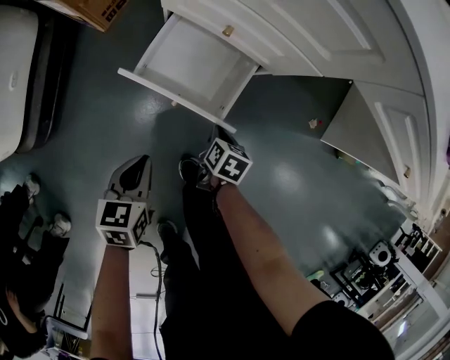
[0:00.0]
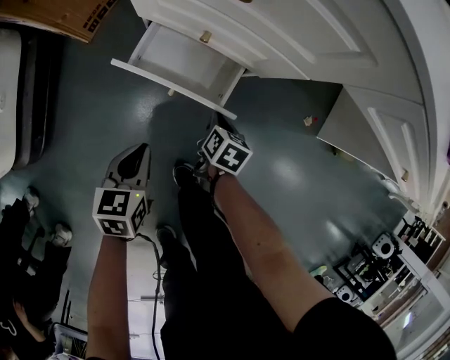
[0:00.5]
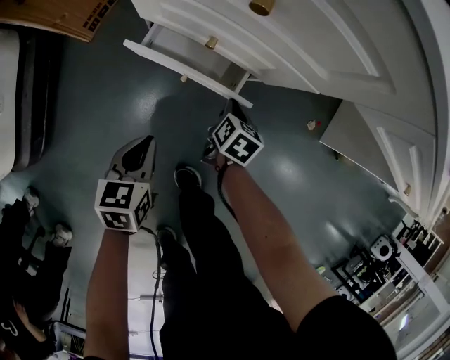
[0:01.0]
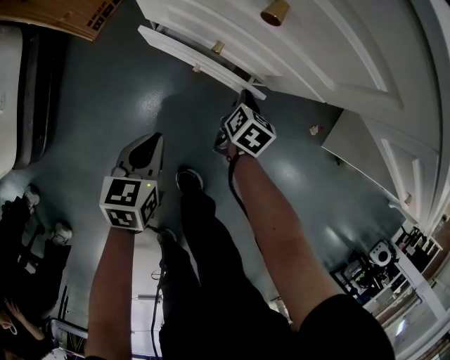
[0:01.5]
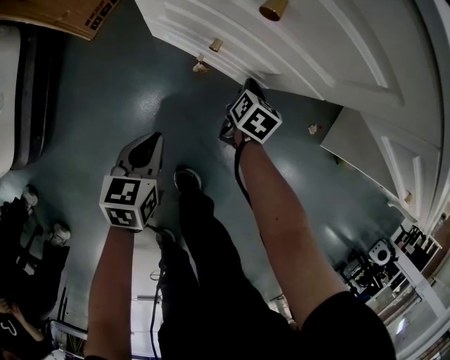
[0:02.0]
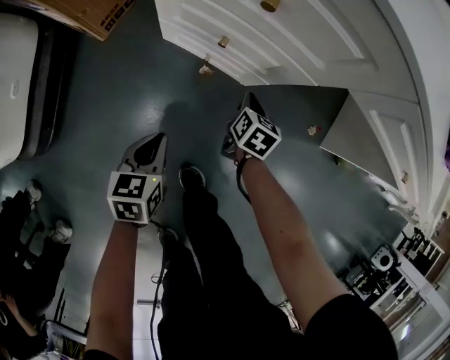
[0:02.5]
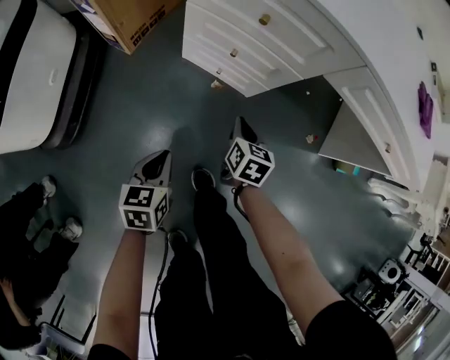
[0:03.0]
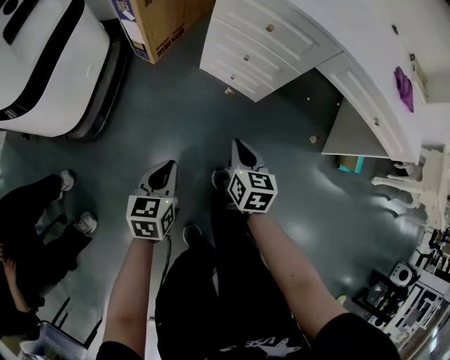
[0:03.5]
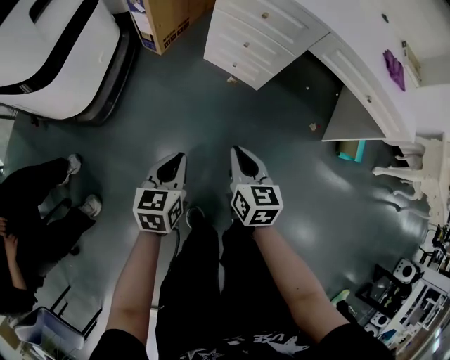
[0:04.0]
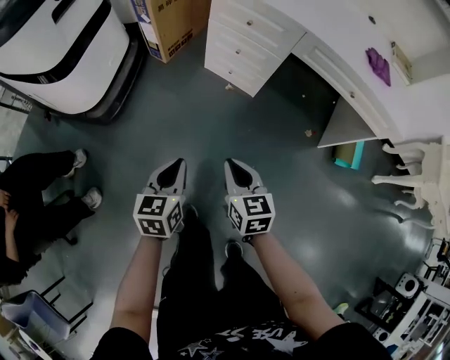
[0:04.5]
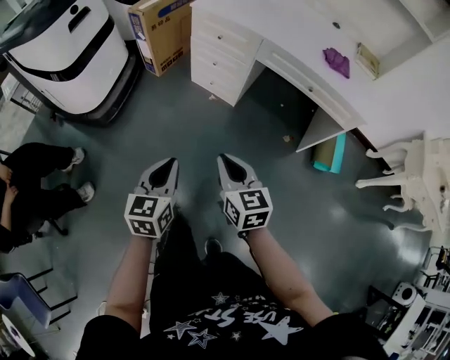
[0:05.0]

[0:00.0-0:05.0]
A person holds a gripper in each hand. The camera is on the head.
0:00.0 to 0:02.5: The right gripper goes about 15 cm forward. The left gripper is displaced forward by about 10 cm.
0:02.5 to 0:05.0: Both grippers are carried some 50 cm. The left gripper swivels roughly 30 degrees. The right gripper changes its angle by some 50 degrees.

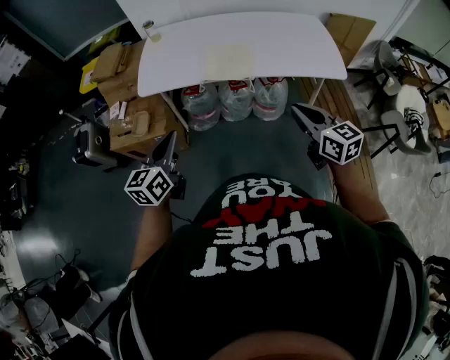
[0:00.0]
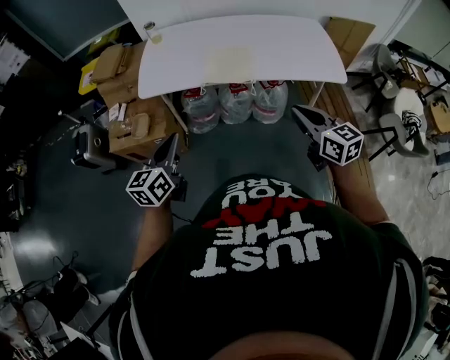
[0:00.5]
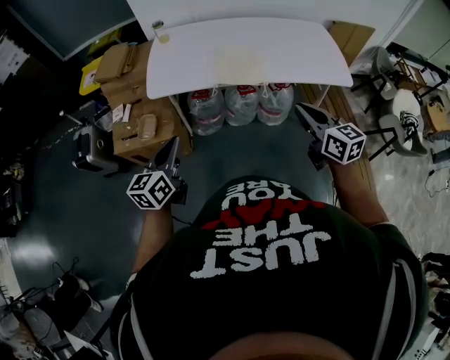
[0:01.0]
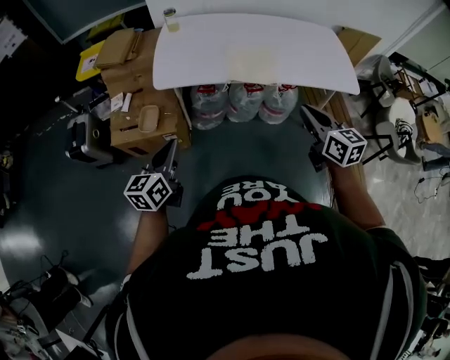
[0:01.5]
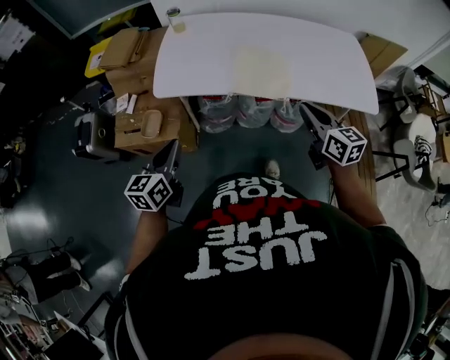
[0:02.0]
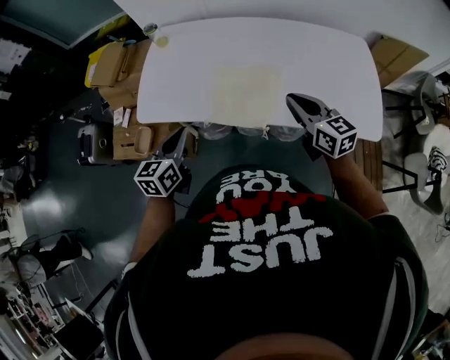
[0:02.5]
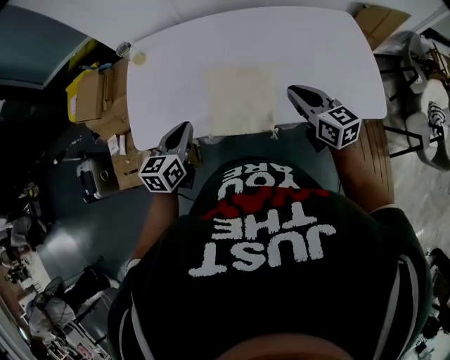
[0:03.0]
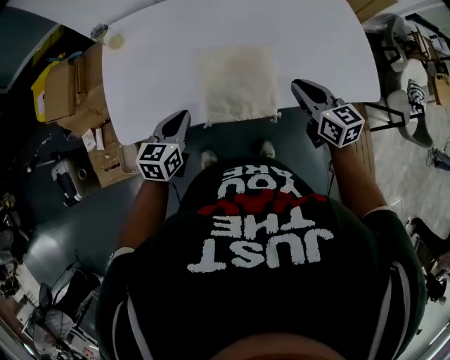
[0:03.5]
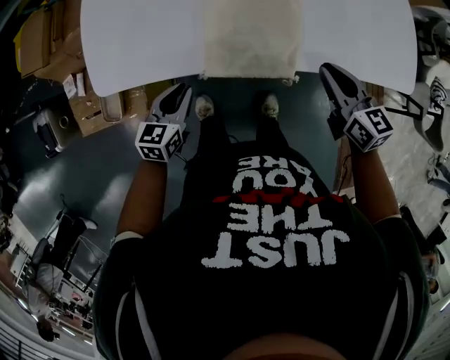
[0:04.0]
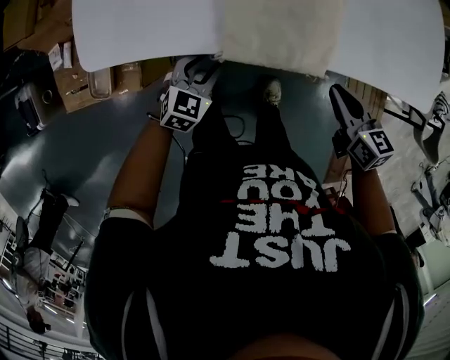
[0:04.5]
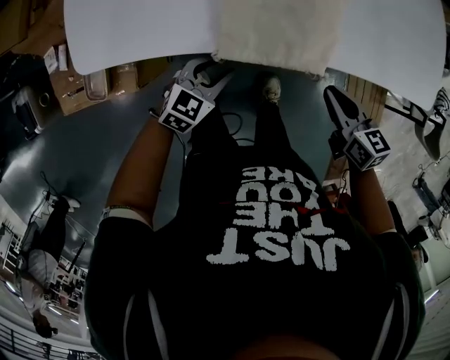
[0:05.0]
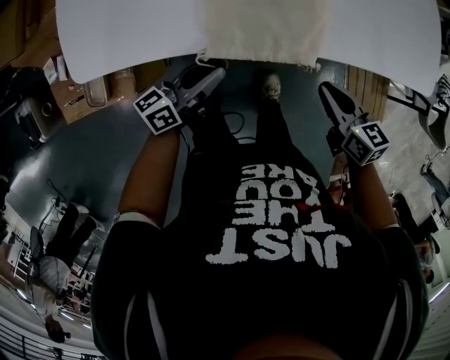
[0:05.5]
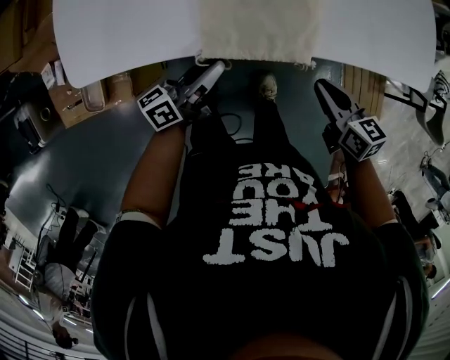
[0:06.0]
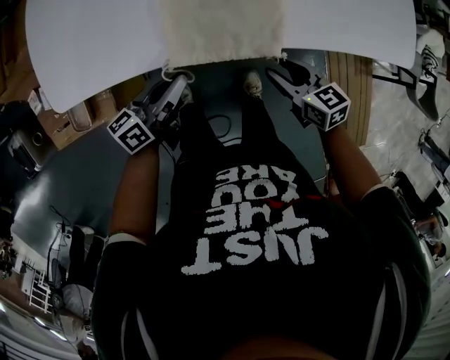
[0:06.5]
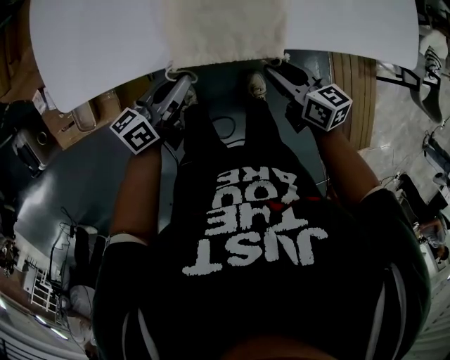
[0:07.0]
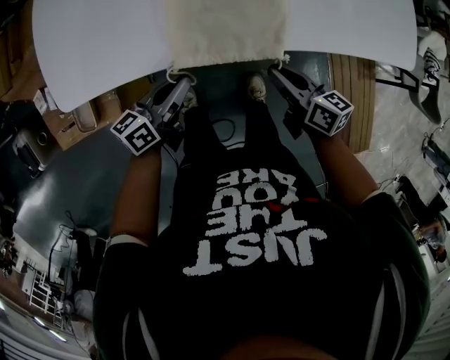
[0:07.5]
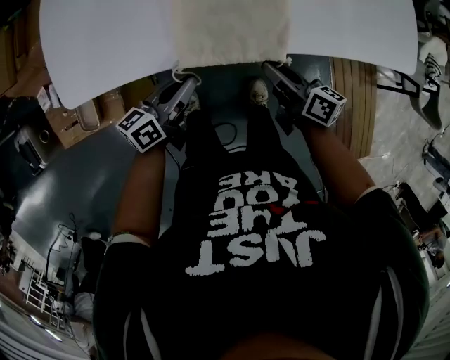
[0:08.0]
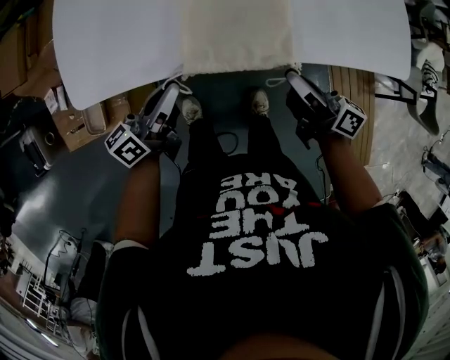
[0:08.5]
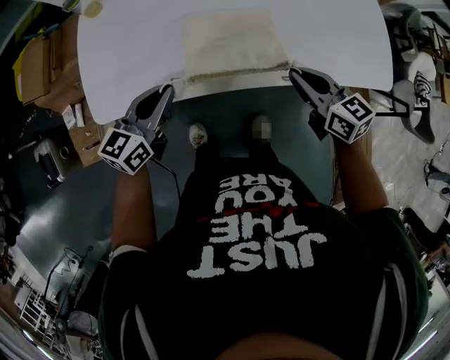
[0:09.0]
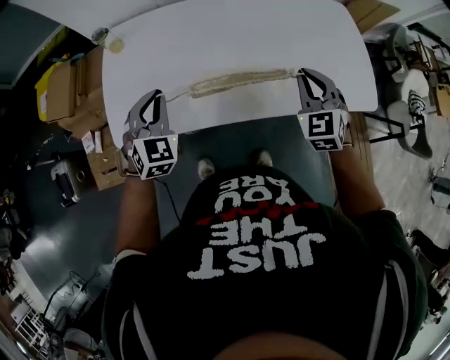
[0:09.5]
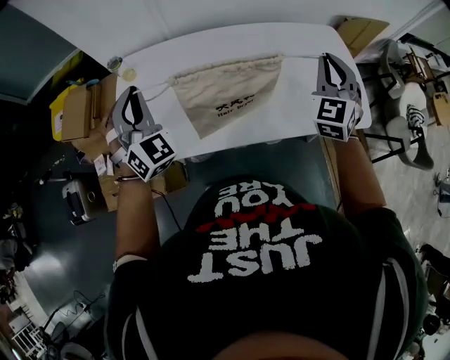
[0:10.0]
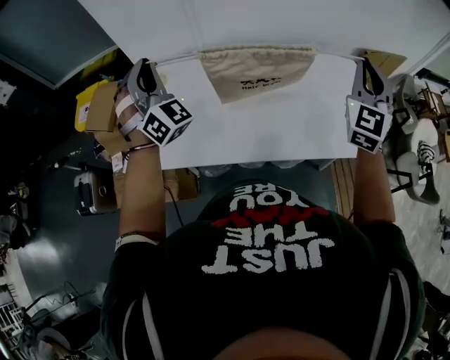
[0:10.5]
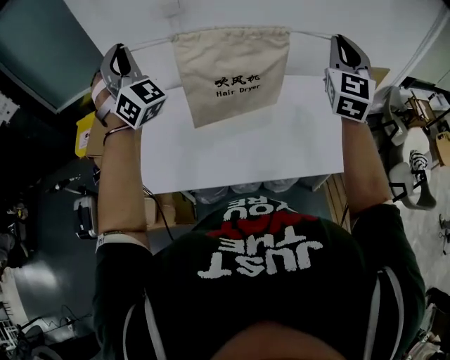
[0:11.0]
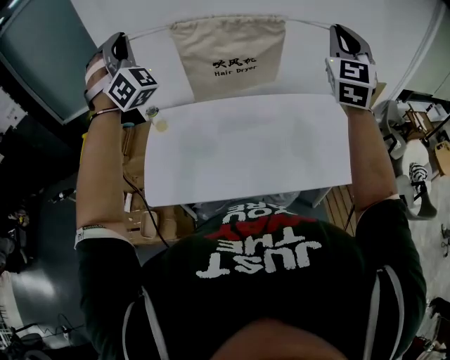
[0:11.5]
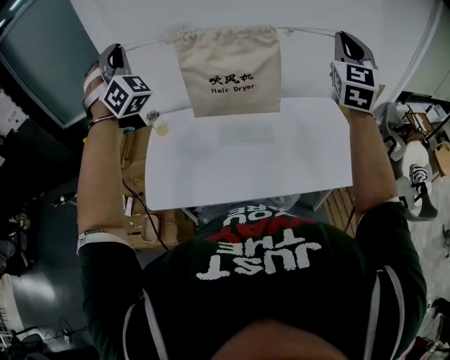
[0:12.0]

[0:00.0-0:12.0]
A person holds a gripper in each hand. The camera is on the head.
0:00.0 to 0:02.0: The right gripper shifts about 20 cm forward. The left gripper heads forward, to the left and downward, covering approximately 15 cm.
0:02.0 to 0:04.0: The left gripper is displaced forward, downward and to the right by some 35 cm, and changes its angle by approximately 30 degrees, while the right gripper goes some 25 cm forward and downward.
0:04.0 to 0:06.0: The left gripper travels to the right by roughly 10 cm, moves approximately 10 cm downward and comes back, angles its fingers upward, by some 40 degrees, and opens and closes again; the right gripper heads downward and backward, covering approximately 15 cm.
0:06.0 to 0:08.0: The right gripper goes approximately 5 cm to the left, rotates some 30 degrees, and opens, then closes once more.
0:08.0 to 0:10.0: The right gripper heads upward, covering approximately 40 cm, and rolls counterclockwise, seen from behind, by some 80 degrees. Meanwhile the left gripper goes some 40 cm upward and forward, and twists approximately 90 degrees clockwise, seen from behind.
0:10.0 to 0:12.0: Both grippers move upward, some 30 cm. The left gripper rotates roughly 30 degrees, while the right gripper swivels about 30 degrees.

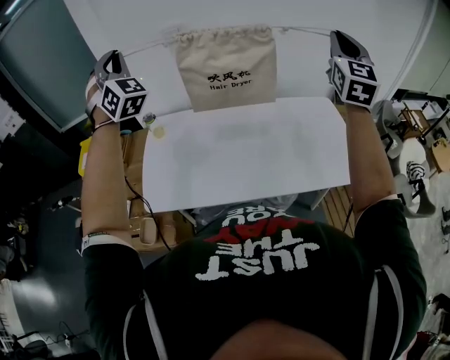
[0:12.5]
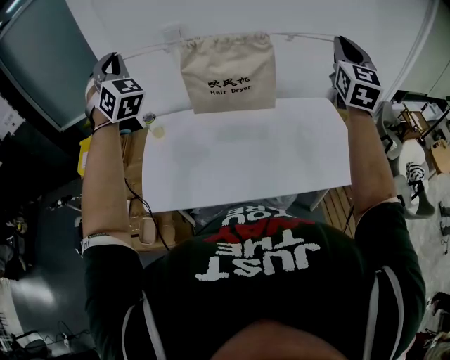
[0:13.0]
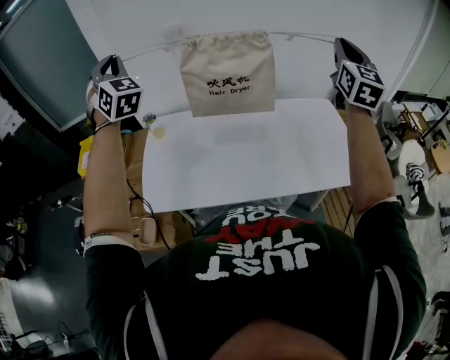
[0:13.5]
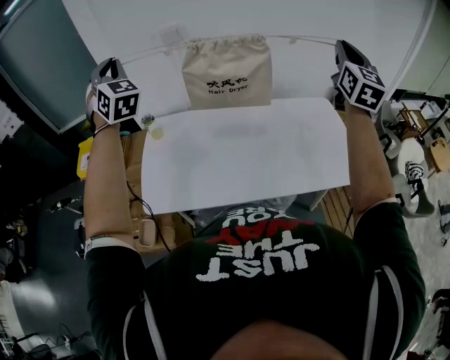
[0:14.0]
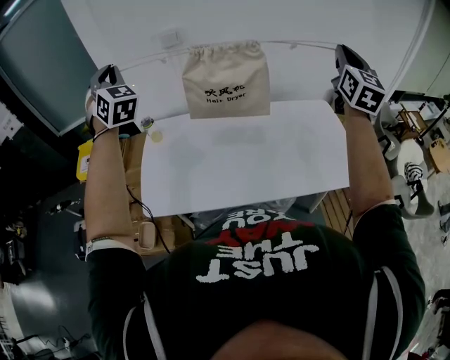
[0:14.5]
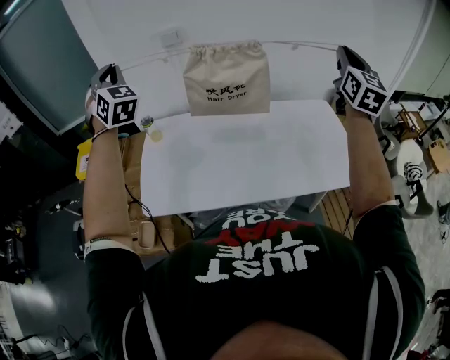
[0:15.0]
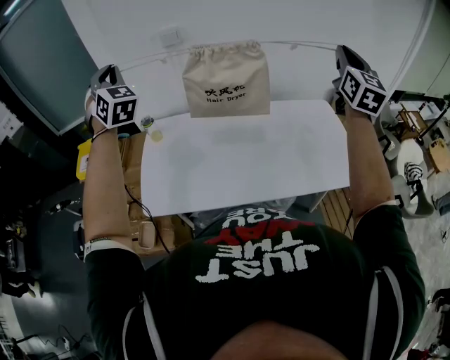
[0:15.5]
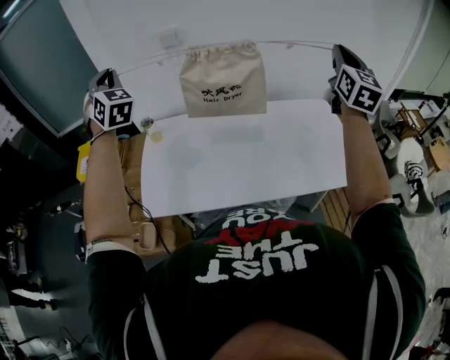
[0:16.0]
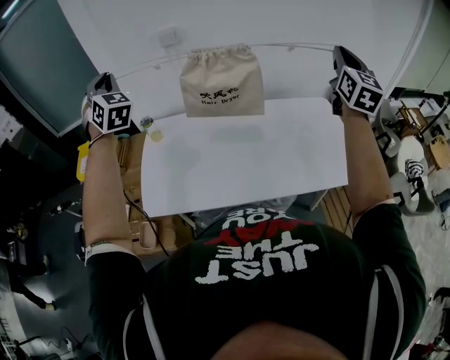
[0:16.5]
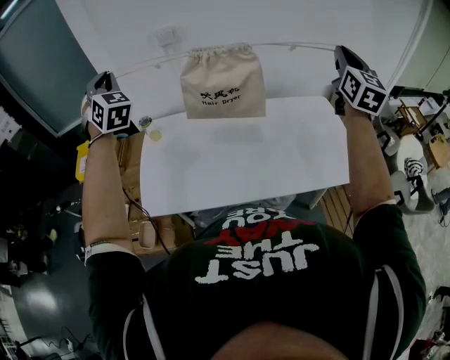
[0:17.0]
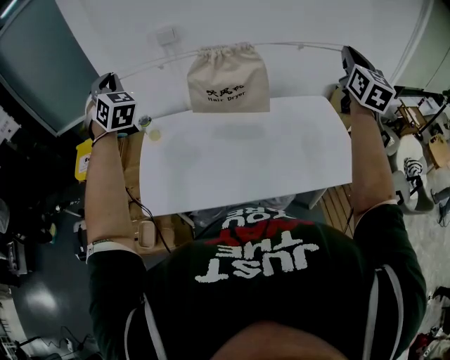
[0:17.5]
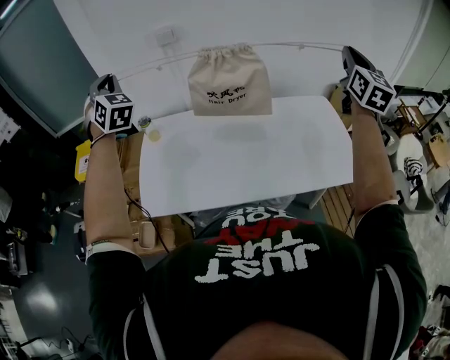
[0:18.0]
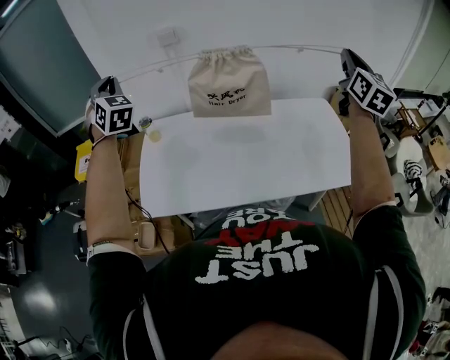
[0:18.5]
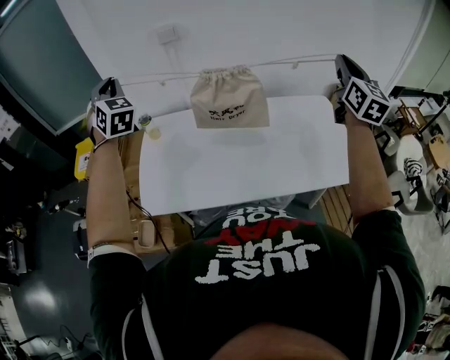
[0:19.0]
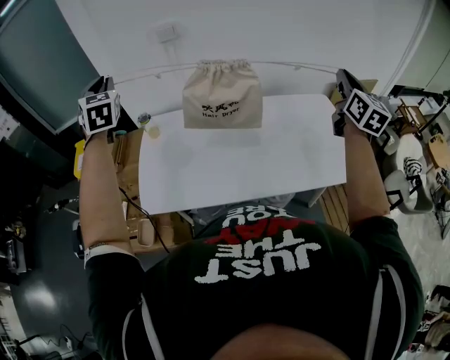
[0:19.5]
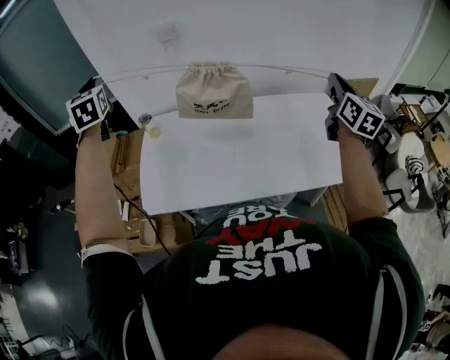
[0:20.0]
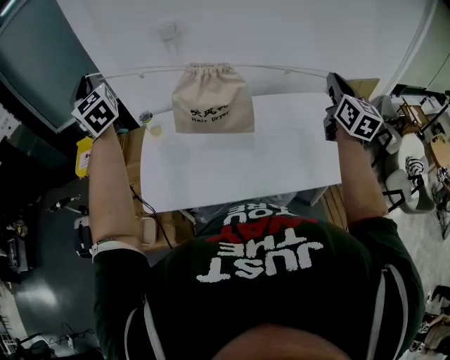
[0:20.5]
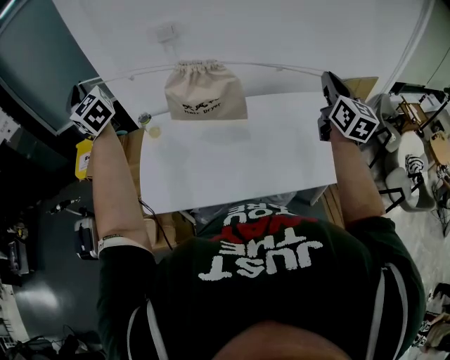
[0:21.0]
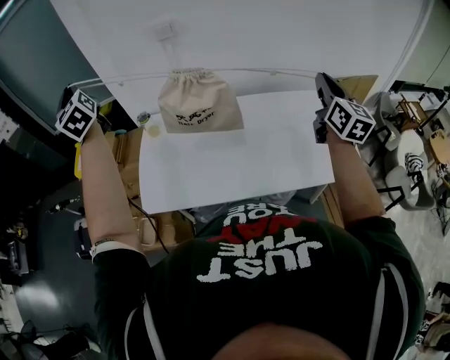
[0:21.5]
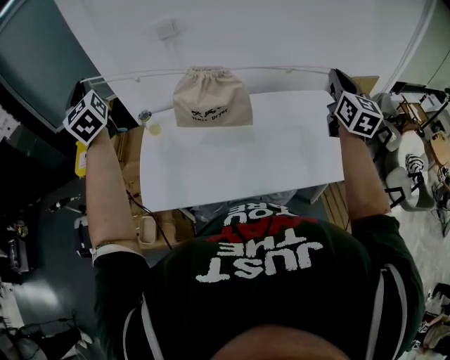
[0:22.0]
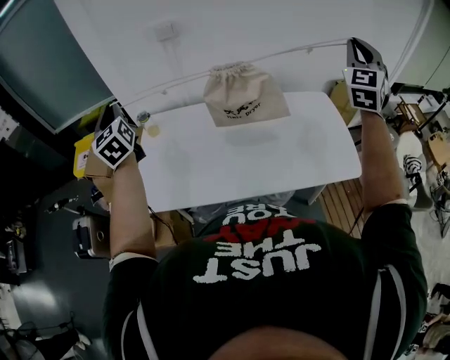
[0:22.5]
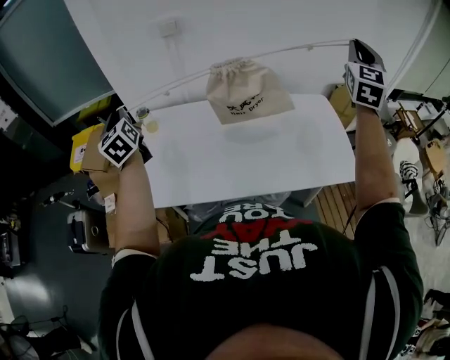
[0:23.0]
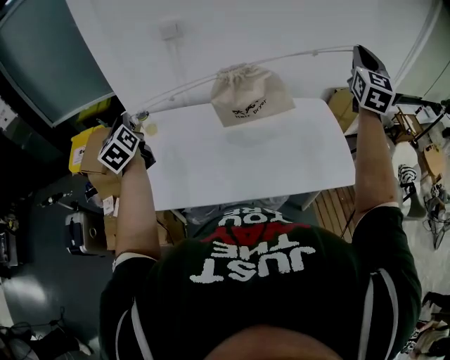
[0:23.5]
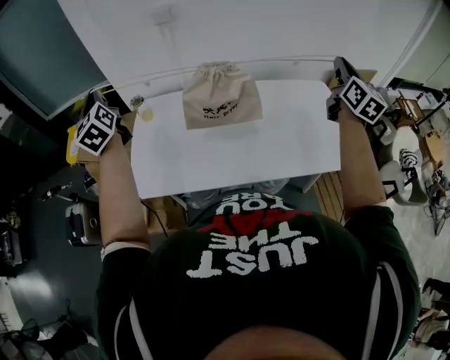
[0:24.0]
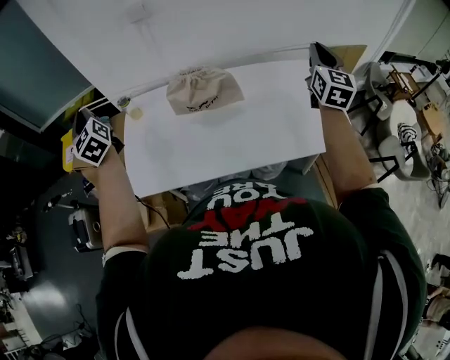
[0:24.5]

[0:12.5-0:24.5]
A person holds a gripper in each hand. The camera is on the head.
0:12.5 to 0:14.5: The right gripper shifts by approximately 5 cm.
0:14.5 to 0:18.5: The grippers move only a little.
0:18.5 to 0:20.5: The left gripper moves to the left, roughly 5 cm, and turns by some 40 degrees. The right gripper shifts about 10 cm downward.
0:20.5 to 0:22.5: The left gripper moves downward, roughly 10 cm. The right gripper goes some 10 cm upward, and rotates around the line of its fingers by approximately 50 degrees, counterclockwise from behind.
0:22.5 to 0:24.5: The left gripper goes up and down, approximately 10 cm each way, reversing 2 times, while the right gripper heads downward, covering some 15 cm, and rotates roughly 40 degrees.
